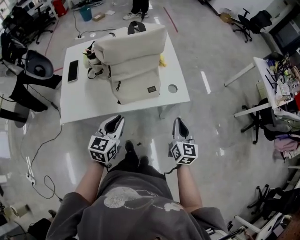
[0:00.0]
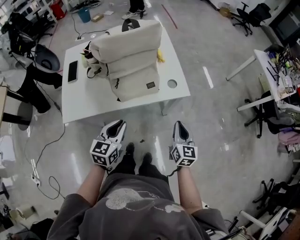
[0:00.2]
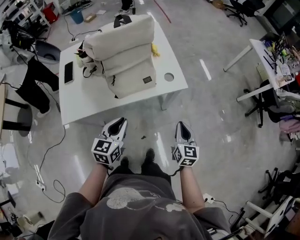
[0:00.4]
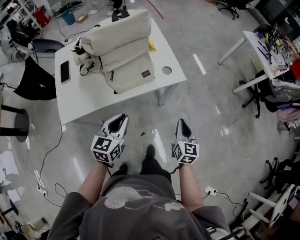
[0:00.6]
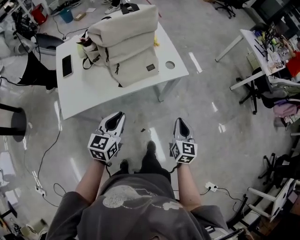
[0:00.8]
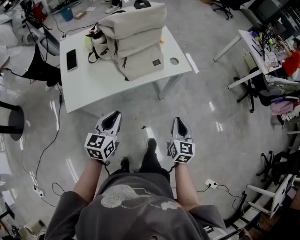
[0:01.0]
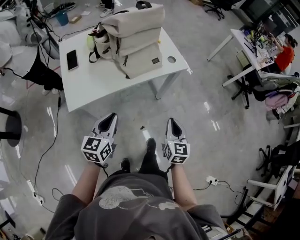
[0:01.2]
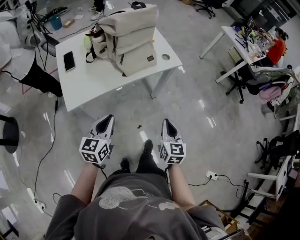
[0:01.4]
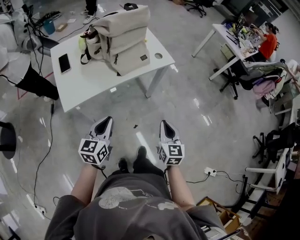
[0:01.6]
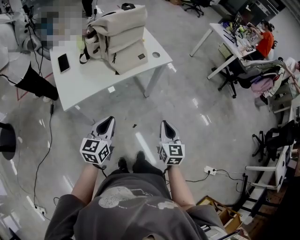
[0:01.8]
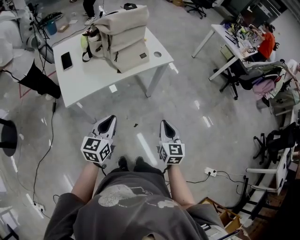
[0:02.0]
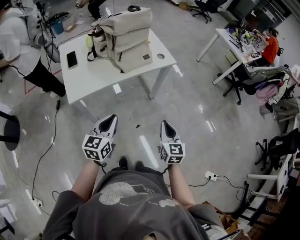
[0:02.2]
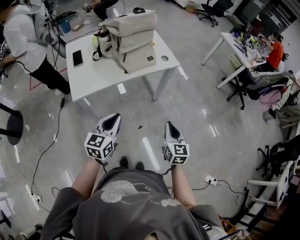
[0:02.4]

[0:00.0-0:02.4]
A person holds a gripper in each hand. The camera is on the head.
0:00.0 to 0:01.2: The right gripper is displaced backward by approximately 20 cm. The left gripper moves backward and to the left, about 20 cm.
0:01.2 to 0:02.4: The right gripper heads backward, covering some 10 cm. The left gripper travels backward and to the right by about 10 cm.

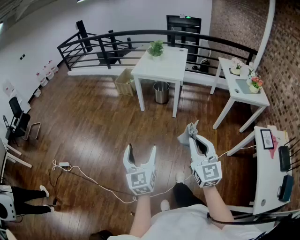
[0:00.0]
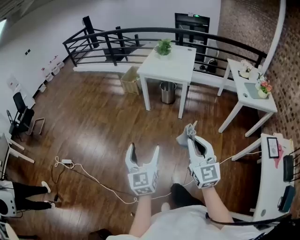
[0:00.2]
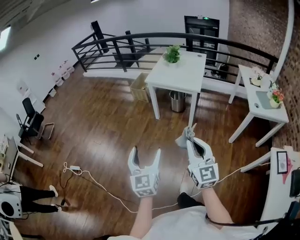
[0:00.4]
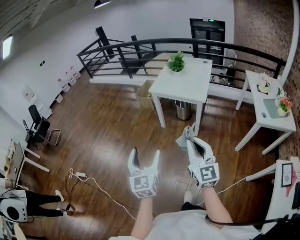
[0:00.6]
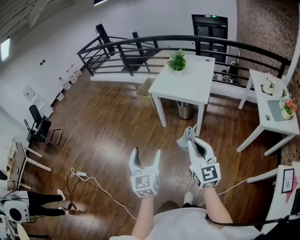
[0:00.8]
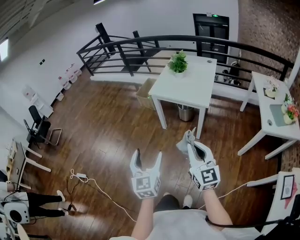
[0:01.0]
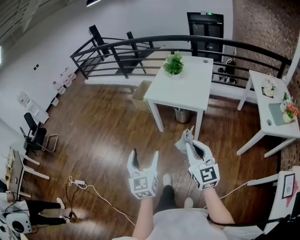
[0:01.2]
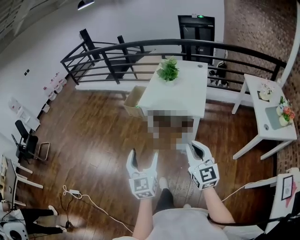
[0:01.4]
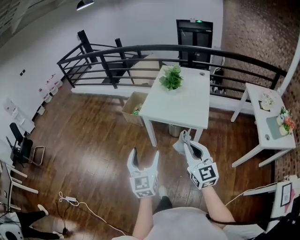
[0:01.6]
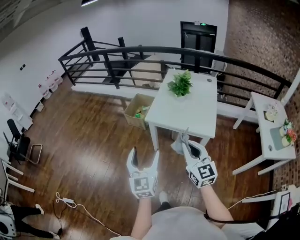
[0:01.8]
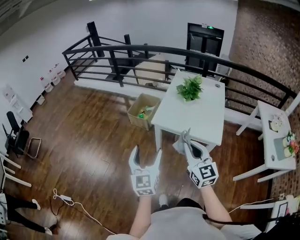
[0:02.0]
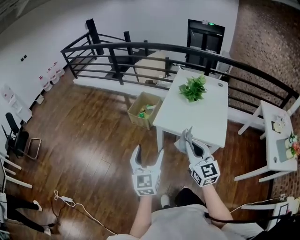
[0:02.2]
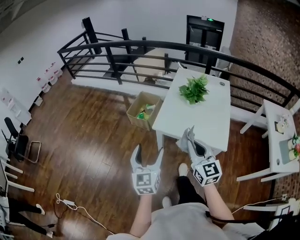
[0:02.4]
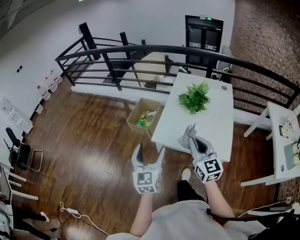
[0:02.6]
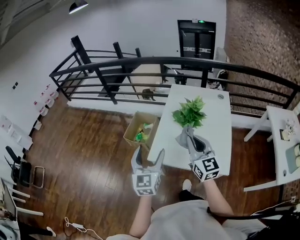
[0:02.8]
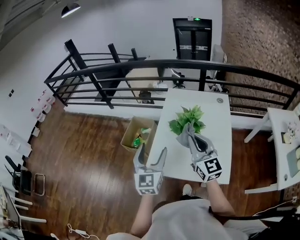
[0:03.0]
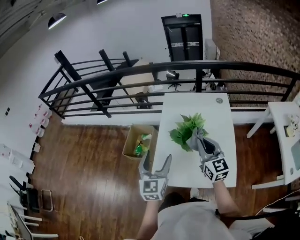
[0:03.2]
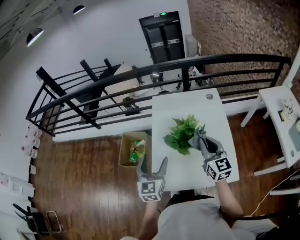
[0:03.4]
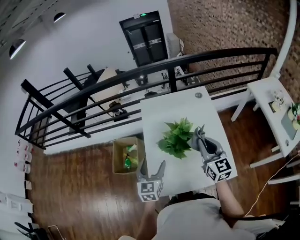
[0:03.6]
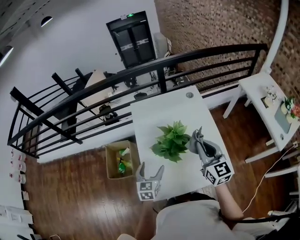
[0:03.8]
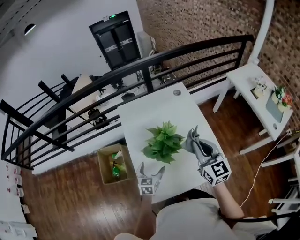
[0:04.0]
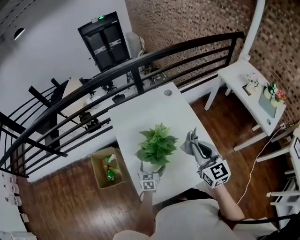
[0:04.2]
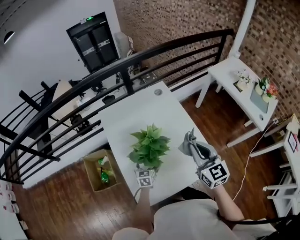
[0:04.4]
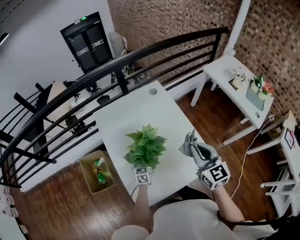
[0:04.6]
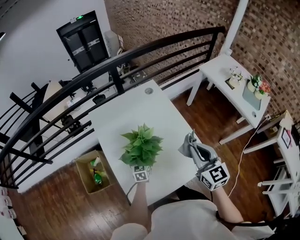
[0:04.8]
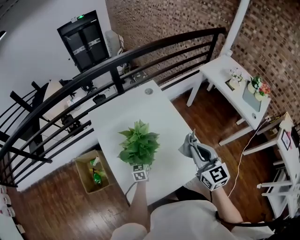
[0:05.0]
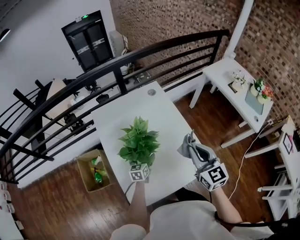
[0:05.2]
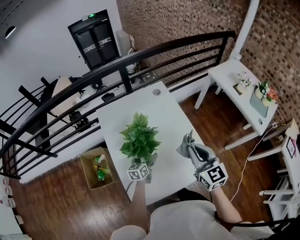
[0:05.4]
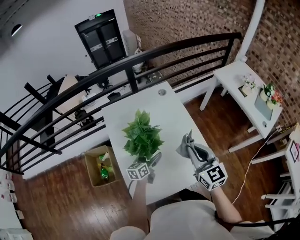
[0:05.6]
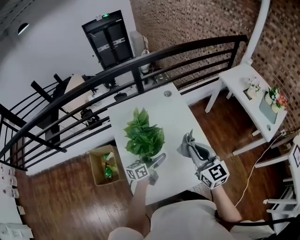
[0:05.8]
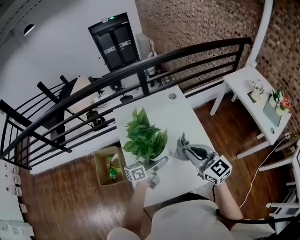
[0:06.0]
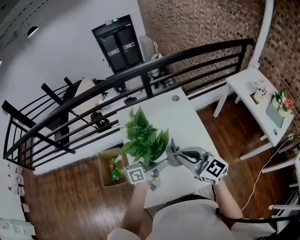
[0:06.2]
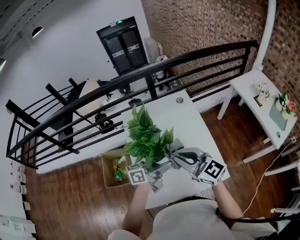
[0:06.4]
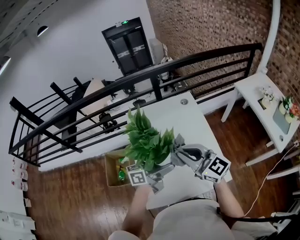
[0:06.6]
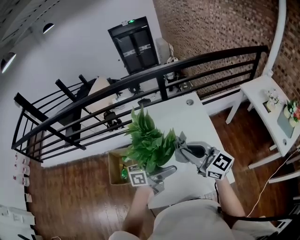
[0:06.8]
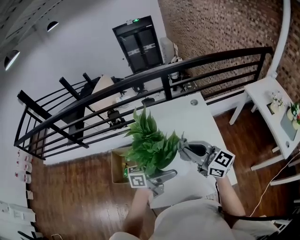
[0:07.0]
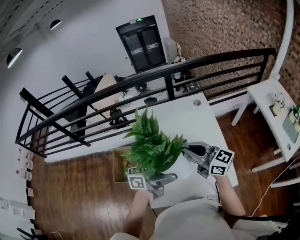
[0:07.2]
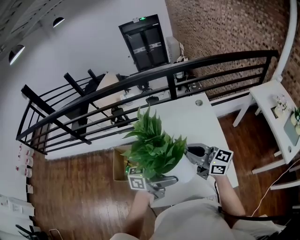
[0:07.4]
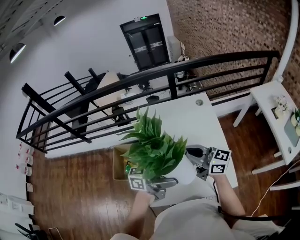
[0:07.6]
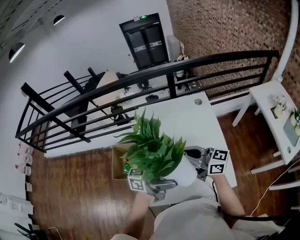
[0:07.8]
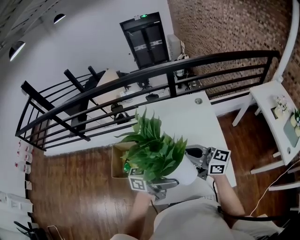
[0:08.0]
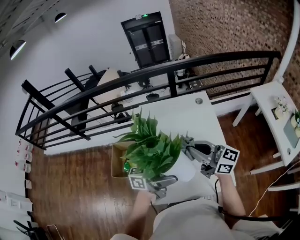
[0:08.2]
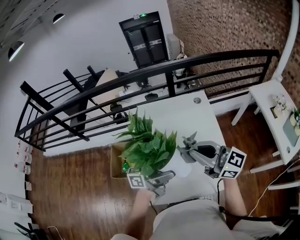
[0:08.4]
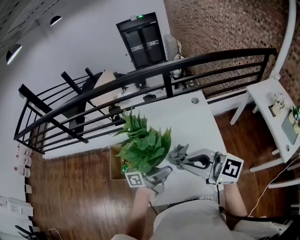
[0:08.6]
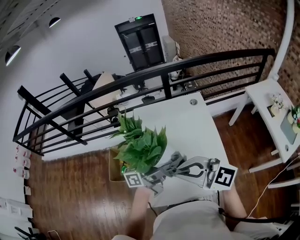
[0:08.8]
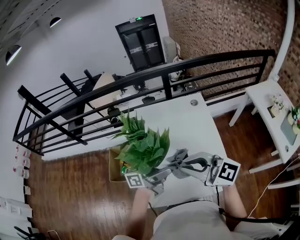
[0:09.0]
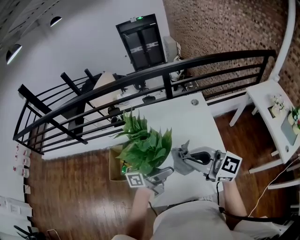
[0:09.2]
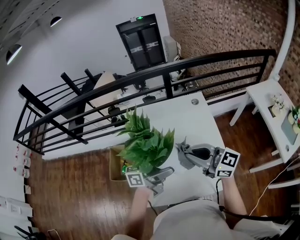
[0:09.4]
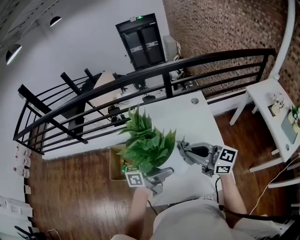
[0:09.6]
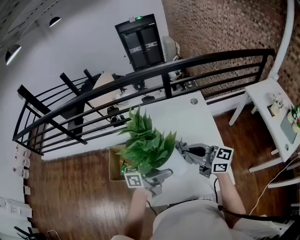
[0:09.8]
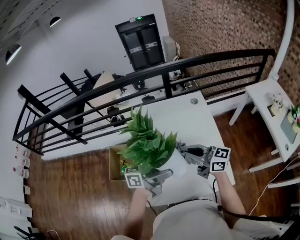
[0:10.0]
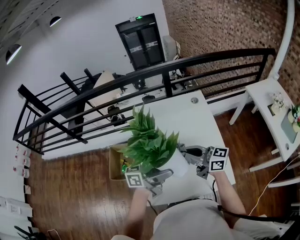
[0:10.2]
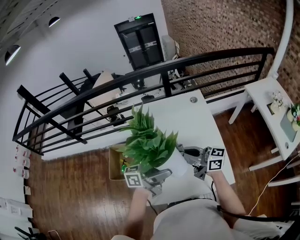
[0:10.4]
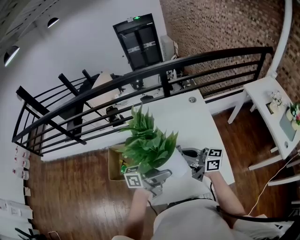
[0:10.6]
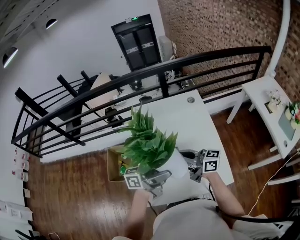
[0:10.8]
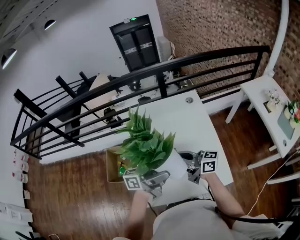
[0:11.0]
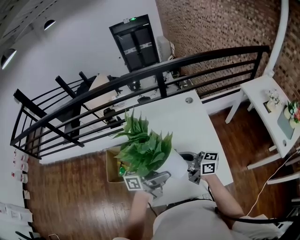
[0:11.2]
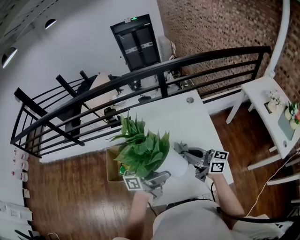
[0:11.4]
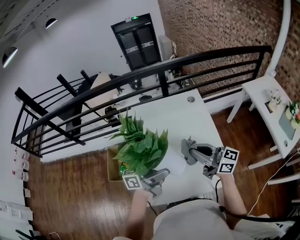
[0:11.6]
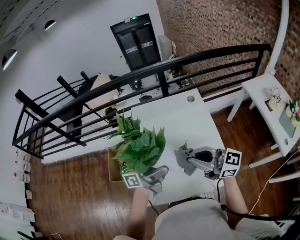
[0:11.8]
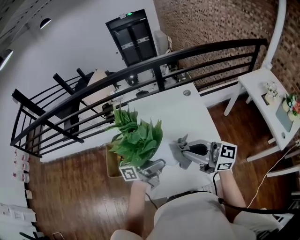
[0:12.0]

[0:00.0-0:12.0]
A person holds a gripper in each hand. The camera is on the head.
0:00.0 to 0:01.6: The pair of grippers is taken forward, about 60 cm.
0:01.6 to 0:03.0: The two grippers travel together, forward, roughly 50 cm.
0:03.0 to 0:04.4: The right gripper shifts by approximately 20 cm, and changes its angle by approximately 40 degrees. The left gripper travels downward by approximately 35 cm, points its fingers roughly 30 degrees further downward, and opens.
0:04.4 to 0:06.0: The right gripper rotates roughly 30 degrees, while the left gripper travels upward by about 20 cm, and angles its fingers upward, by roughly 30 degrees.
0:06.0 to 0:07.6: The right gripper moves approximately 10 cm, and swivels roughly 40 degrees. Meanwhile the left gripper shifts about 15 cm upward, and rotates roughly 30 degrees.
0:07.6 to 0:09.0: The left gripper ends up about 5 cm from where it was; the right gripper ends up approximately 10 cm from where it was, and rotates roughly 30 degrees.
0:09.0 to 0:10.4: The right gripper is displaced downward by roughly 10 cm, and rotates some 40 degrees.
0:10.4 to 0:12.0: The right gripper is displaced upward by some 5 cm.

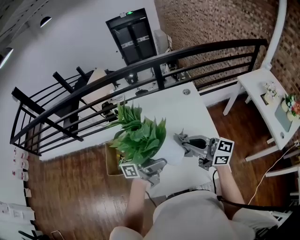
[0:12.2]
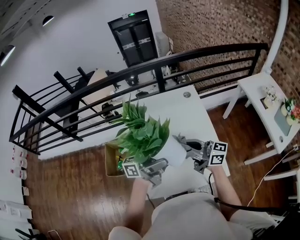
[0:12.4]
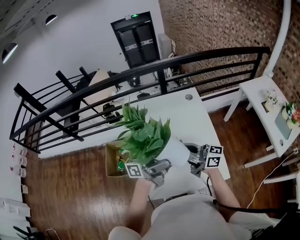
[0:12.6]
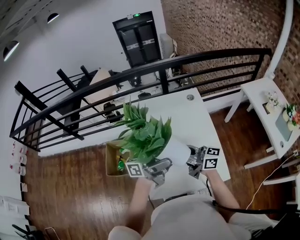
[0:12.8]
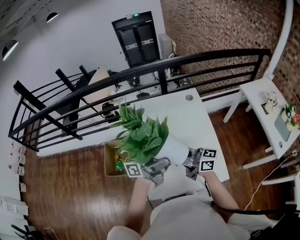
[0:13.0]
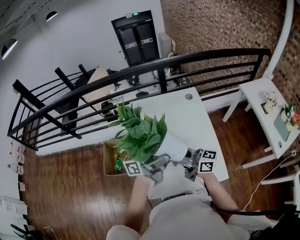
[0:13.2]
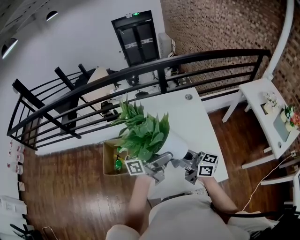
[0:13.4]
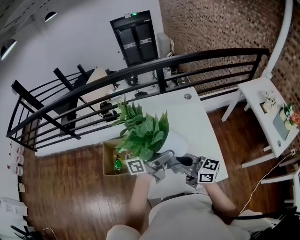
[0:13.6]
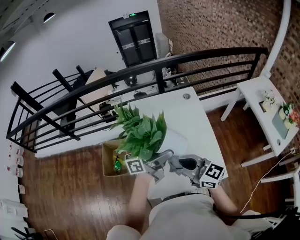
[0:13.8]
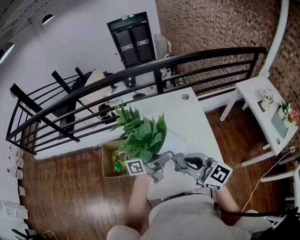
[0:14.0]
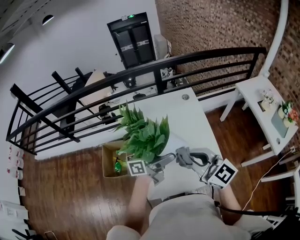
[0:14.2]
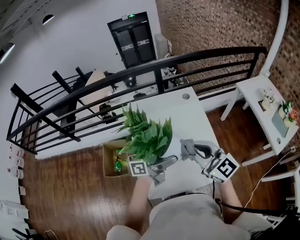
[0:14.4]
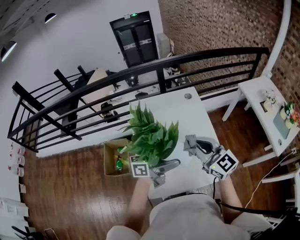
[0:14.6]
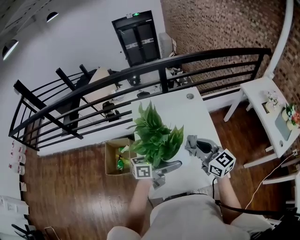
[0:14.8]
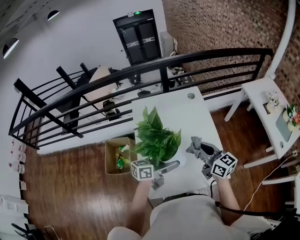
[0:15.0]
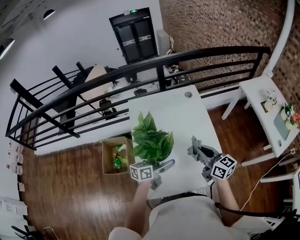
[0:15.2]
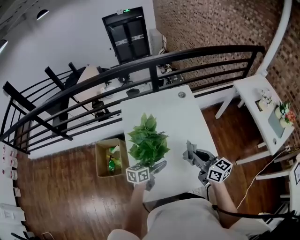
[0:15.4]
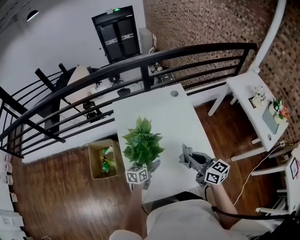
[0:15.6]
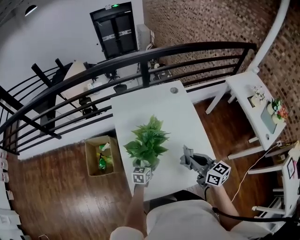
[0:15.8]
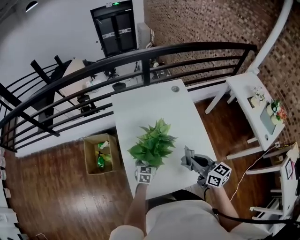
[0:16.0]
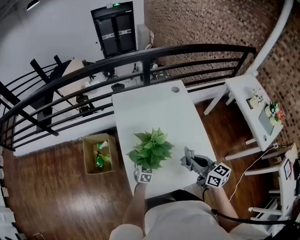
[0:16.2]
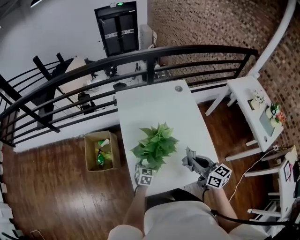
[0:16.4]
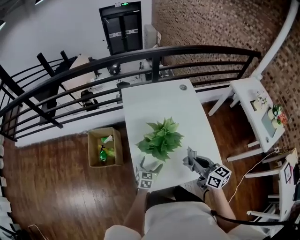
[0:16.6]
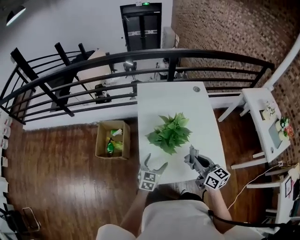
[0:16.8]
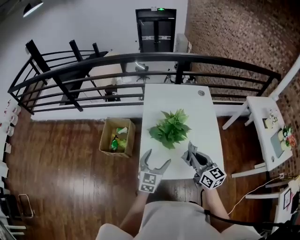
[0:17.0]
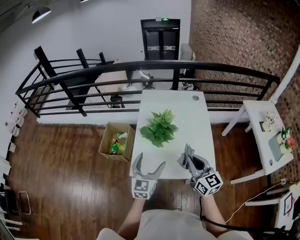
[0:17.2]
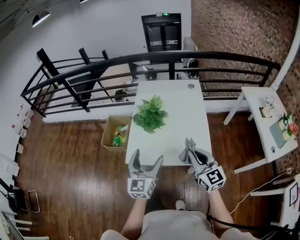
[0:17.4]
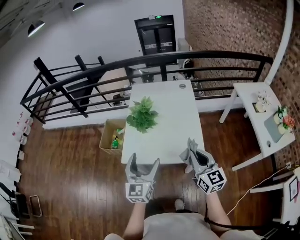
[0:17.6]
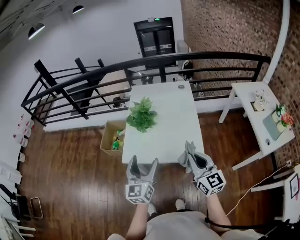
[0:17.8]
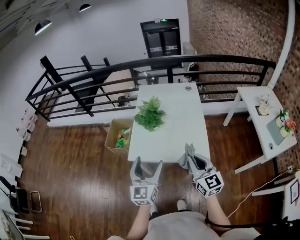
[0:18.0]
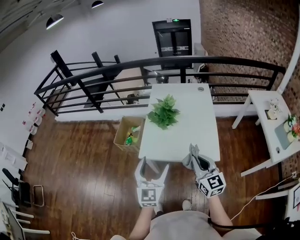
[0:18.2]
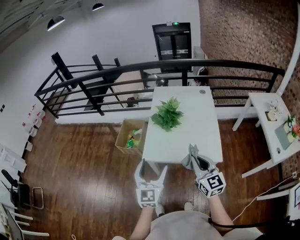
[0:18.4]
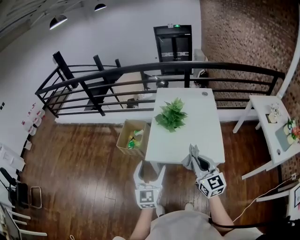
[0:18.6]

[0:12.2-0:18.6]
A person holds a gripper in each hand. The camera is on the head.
0:12.2 to 0:13.8: The right gripper shifts by some 10 cm.
0:13.8 to 0:15.4: The left gripper goes about 25 cm downward, and points its fingers some 40 degrees further downward, while the right gripper travels downward, to the right and forward by some 15 cm, and turns by roughly 30 degrees.
0:15.4 to 0:17.0: The right gripper is displaced backward and to the left by some 10 cm, while the left gripper travels backward by about 10 cm, goes downward and returns, some 15 cm each way, and changes its angle by about 40 degrees.
0:17.0 to 0:18.6: The left gripper is displaced backward and upward by approximately 30 cm, and rotates about 30 degrees. The right gripper moves backward, approximately 25 cm.

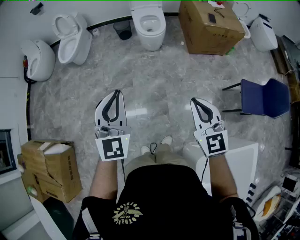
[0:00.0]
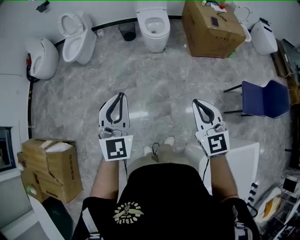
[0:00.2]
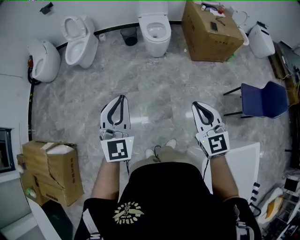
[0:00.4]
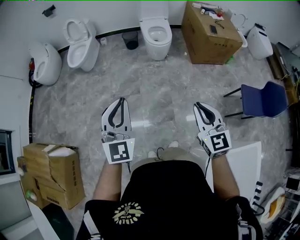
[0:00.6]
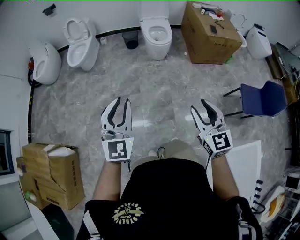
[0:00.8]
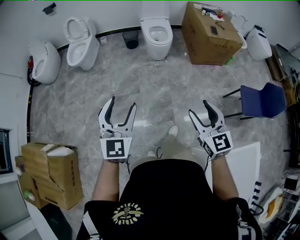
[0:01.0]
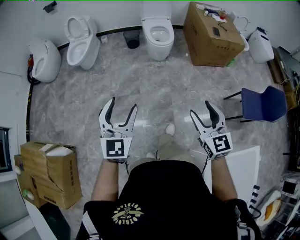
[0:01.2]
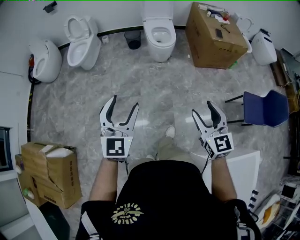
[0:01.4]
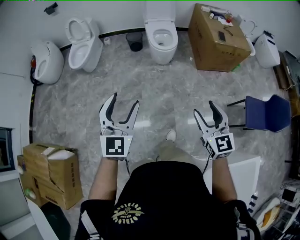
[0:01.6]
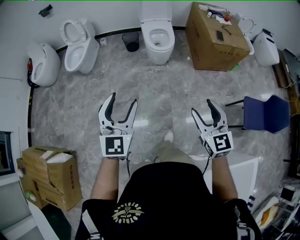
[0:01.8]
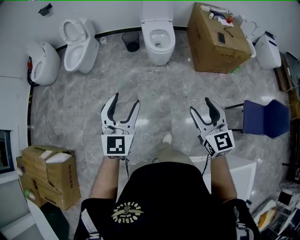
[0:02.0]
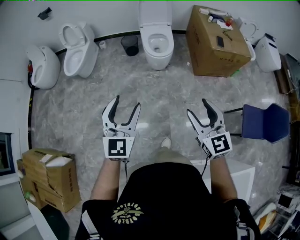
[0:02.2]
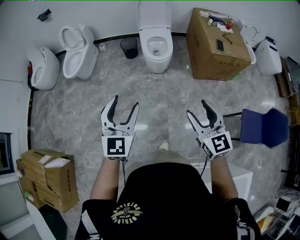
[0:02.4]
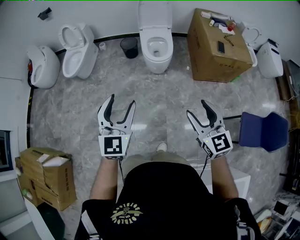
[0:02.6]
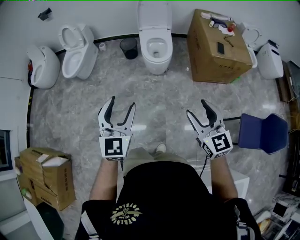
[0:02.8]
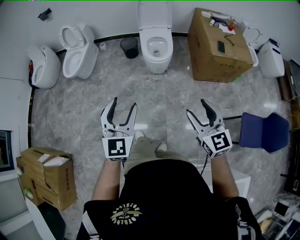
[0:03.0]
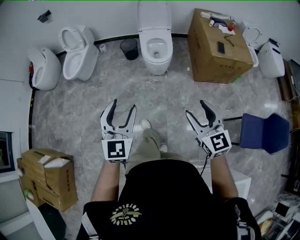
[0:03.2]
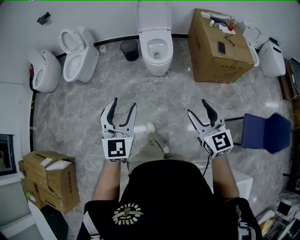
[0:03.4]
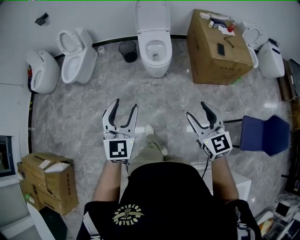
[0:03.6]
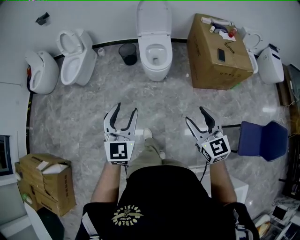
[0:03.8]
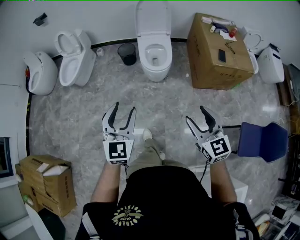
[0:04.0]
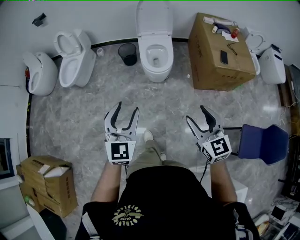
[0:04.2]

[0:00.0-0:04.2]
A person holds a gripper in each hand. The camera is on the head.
0:00.0 to 0:01.4: The left gripper shifts roughly 10 cm to the left, and opens; the right gripper moves to the left, some 5 cm, and opens its fingers.
0:01.4 to 0:02.8: Both grippers move forward and to the right, about 25 cm.
0:02.8 to 0:04.2: The grippers both shift forward by roughly 10 cm.
